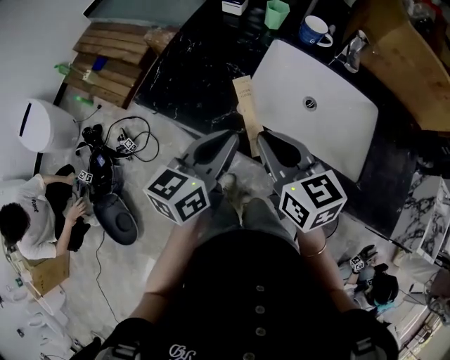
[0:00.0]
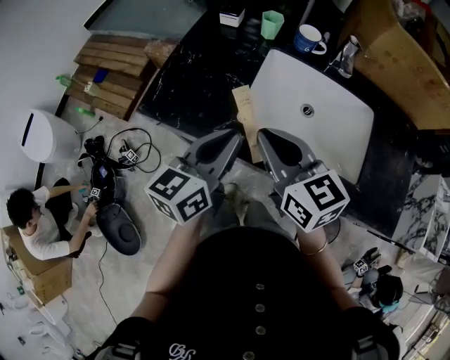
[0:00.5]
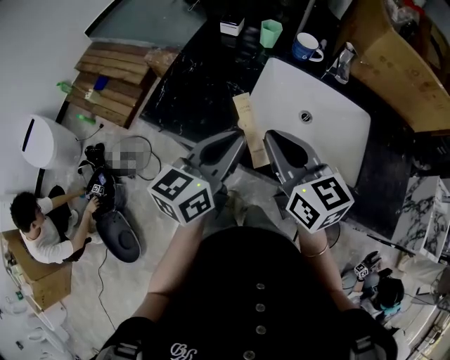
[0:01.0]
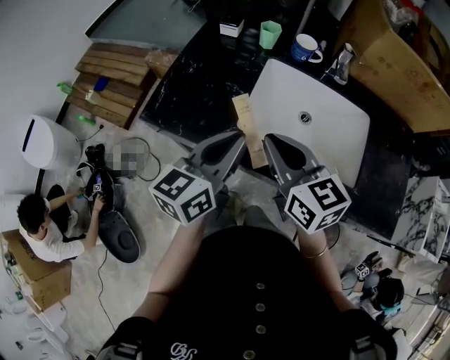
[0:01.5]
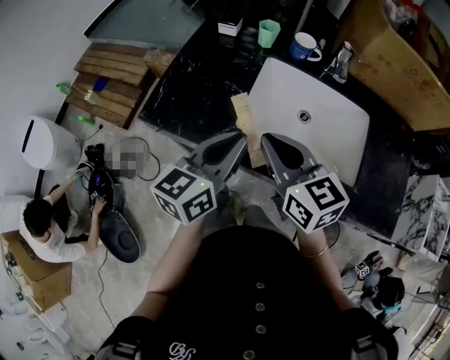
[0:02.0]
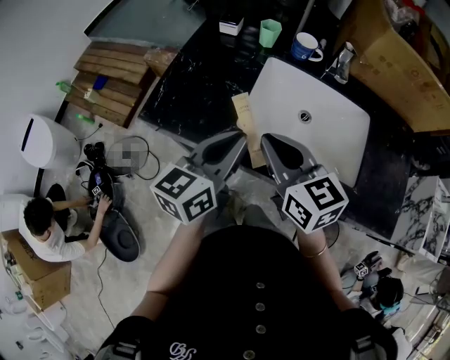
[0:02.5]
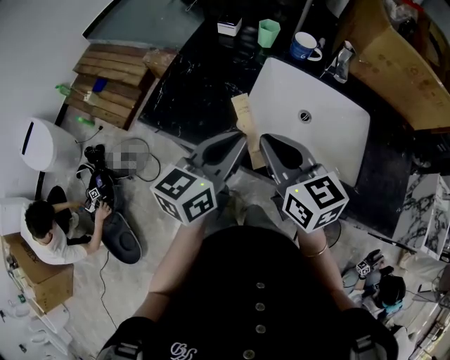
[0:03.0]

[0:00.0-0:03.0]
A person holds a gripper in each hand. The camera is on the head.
0:00.0 to 0:01.5: The grippers move only a little.
0:01.5 to 0:03.0: Neither gripper changes place.

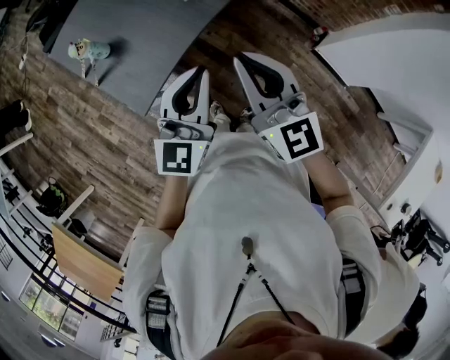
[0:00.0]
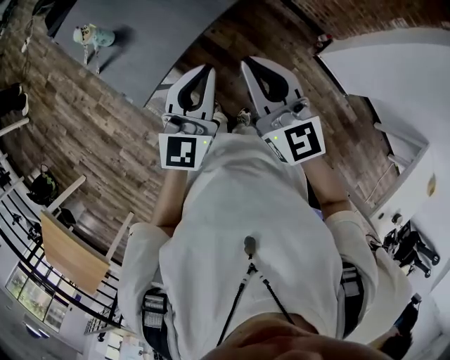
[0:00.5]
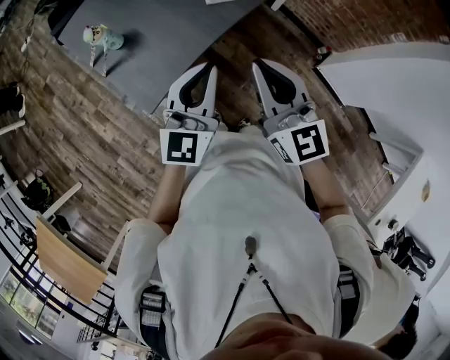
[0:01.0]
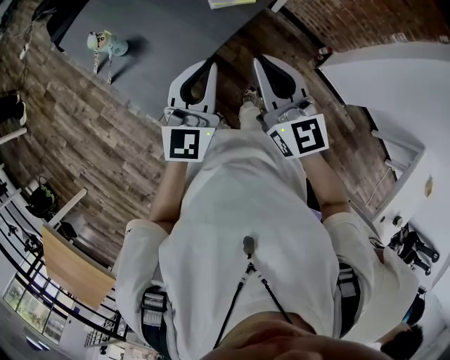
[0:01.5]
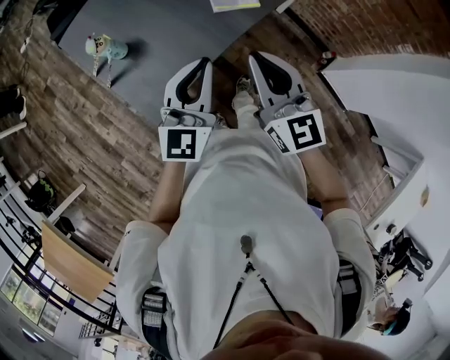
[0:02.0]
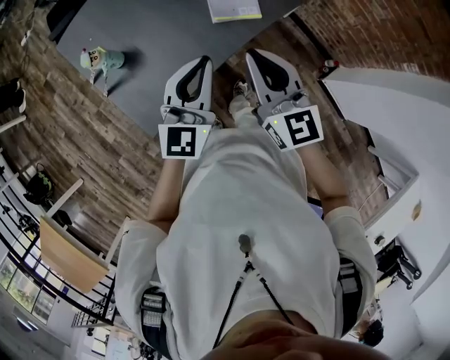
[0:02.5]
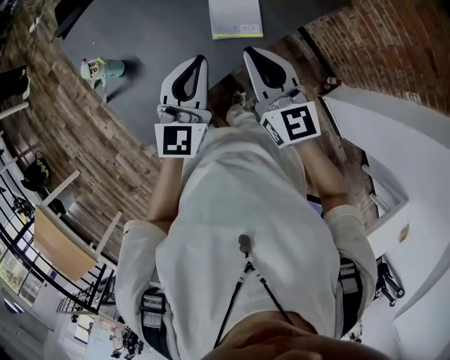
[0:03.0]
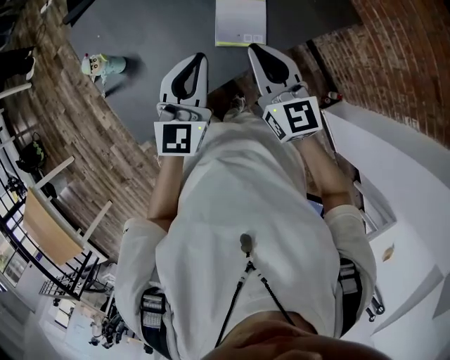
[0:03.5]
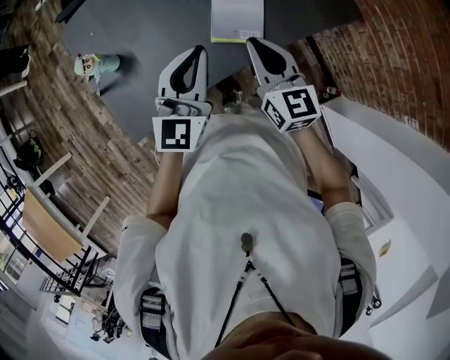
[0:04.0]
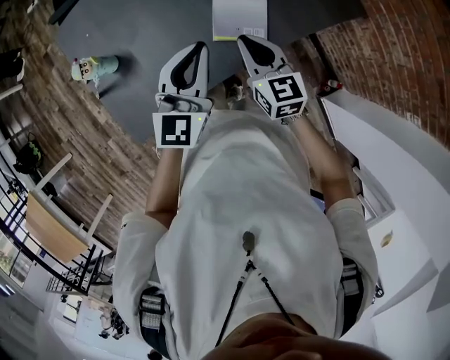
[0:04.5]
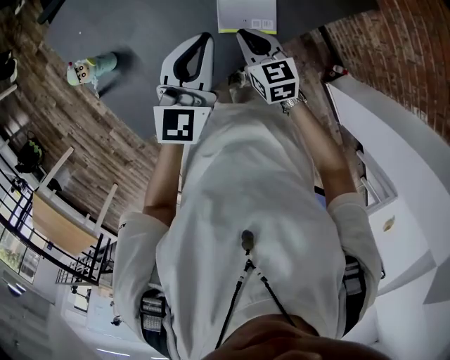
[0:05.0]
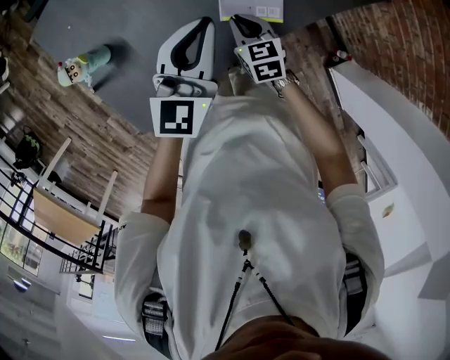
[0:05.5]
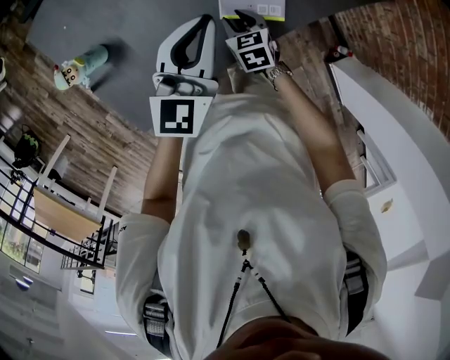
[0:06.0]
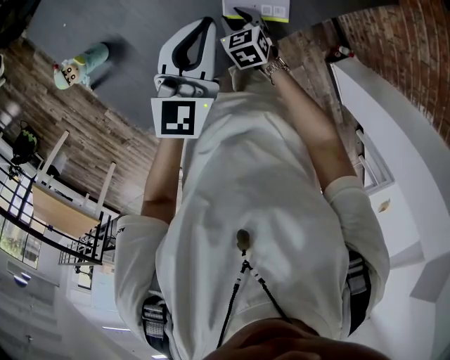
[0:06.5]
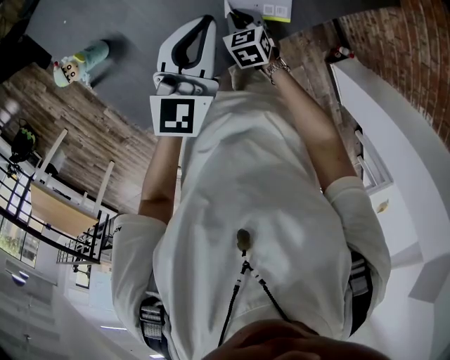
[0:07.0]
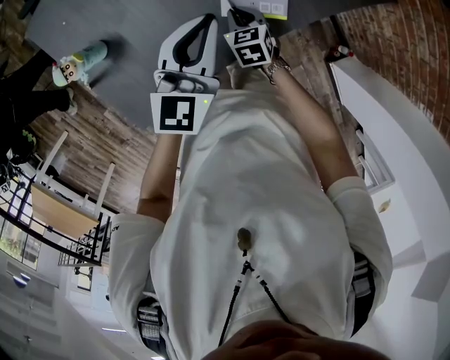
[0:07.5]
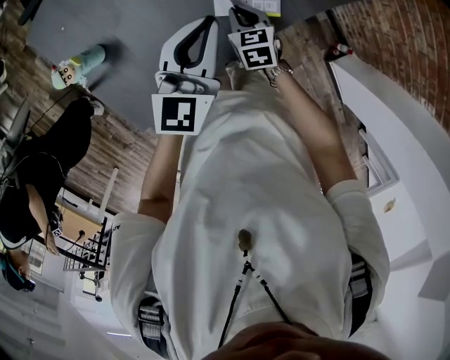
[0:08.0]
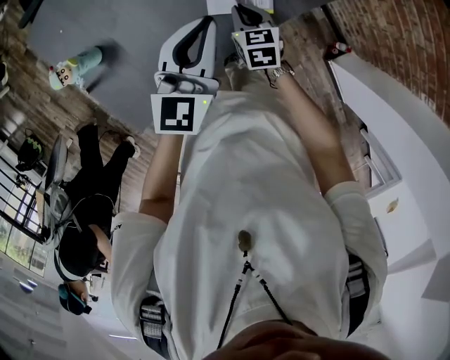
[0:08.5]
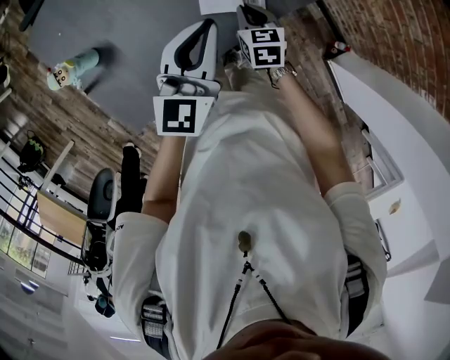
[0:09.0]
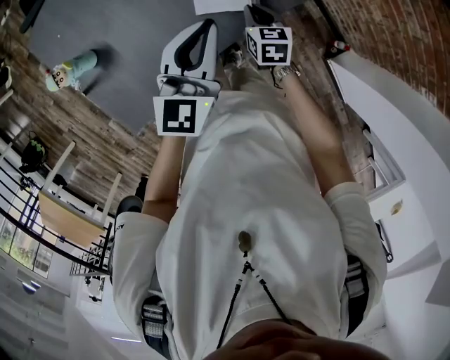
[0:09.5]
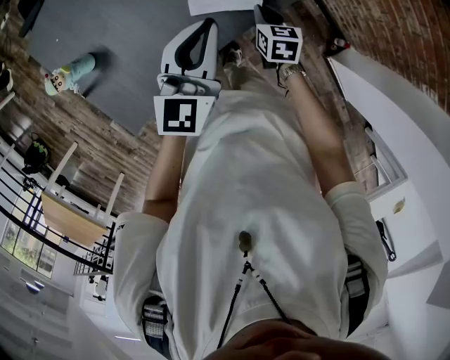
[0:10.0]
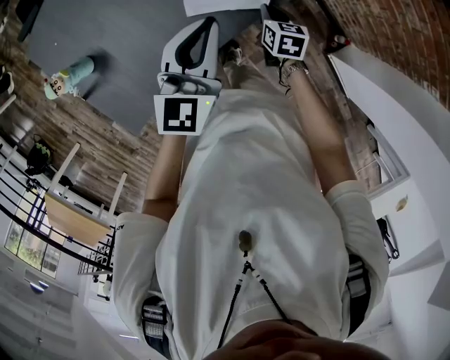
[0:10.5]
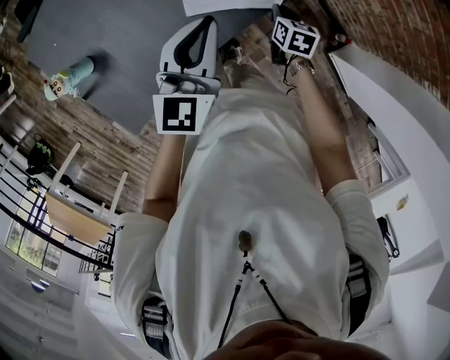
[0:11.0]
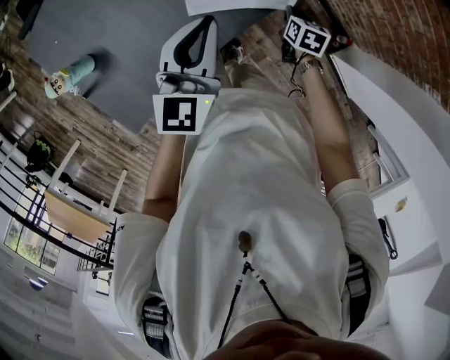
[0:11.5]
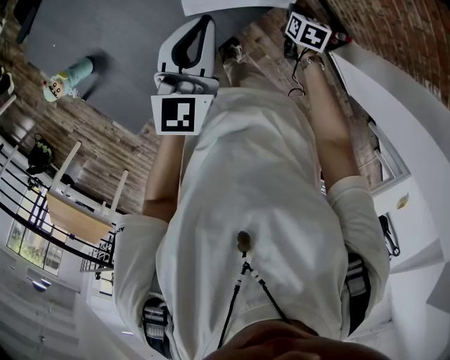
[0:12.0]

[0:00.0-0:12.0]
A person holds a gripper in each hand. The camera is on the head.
0:00.0 to 0:02.0: Both grippers move forward and to the left, approximately 15 cm.
0:02.0 to 0:04.0: The two grippers go about 30 cm forward and to the right.
0:04.0 to 0:06.0: The right gripper shifts some 30 cm downward, tips its fingers downward by some 40 degrees, and opens. The left gripper travels forward and downward by about 15 cm.
0:06.0 to 0:08.0: The right gripper closes.
0:08.0 to 0:10.0: The right gripper heads to the right, covering roughly 15 cm; the left gripper moves to the right, roughly 10 cm.
0:10.0 to 0:12.0: The right gripper is displaced to the right and downward by roughly 15 cm.

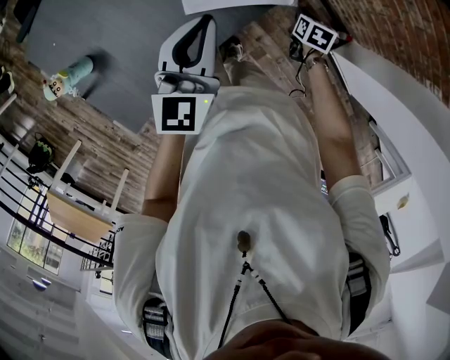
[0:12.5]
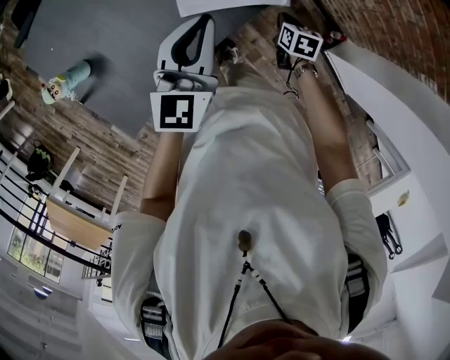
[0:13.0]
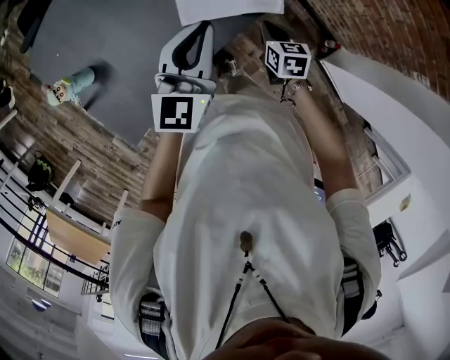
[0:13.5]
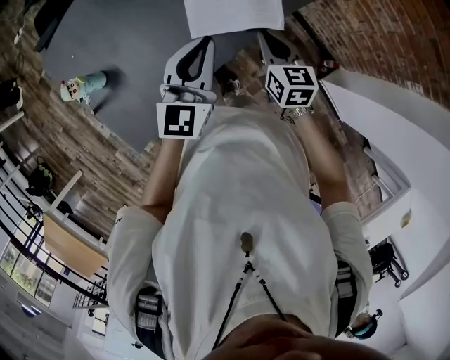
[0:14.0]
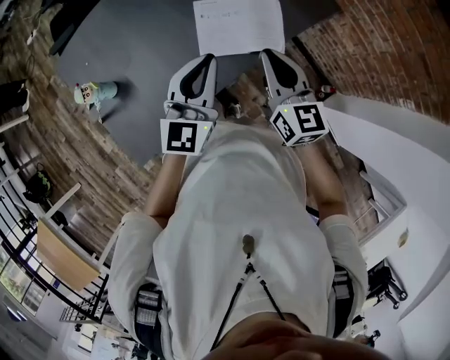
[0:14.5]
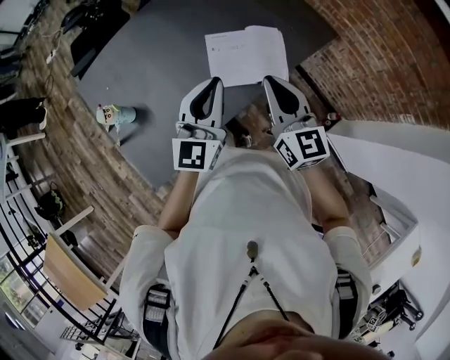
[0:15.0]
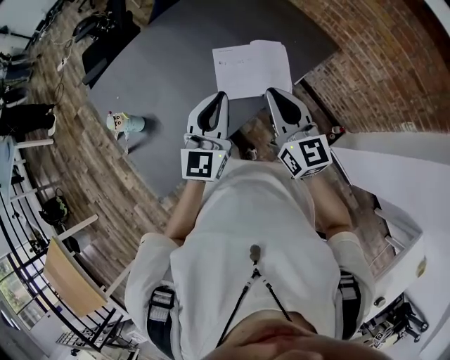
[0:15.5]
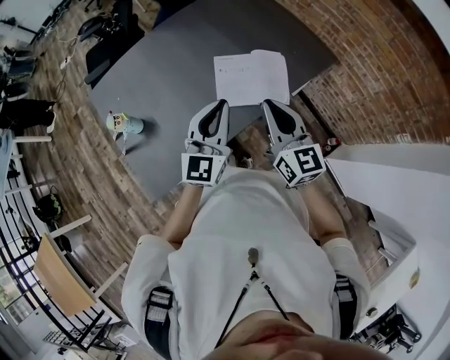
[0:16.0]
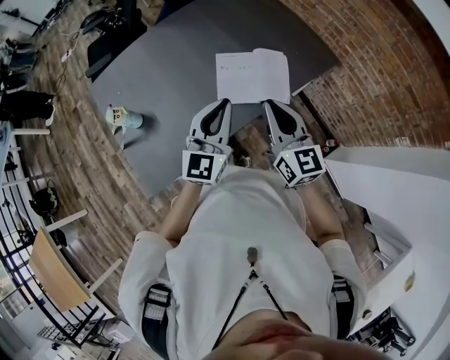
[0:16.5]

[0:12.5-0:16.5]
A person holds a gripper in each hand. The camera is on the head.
0:12.5 to 0:14.5: The left gripper travels upward and backward by roughly 15 cm; the right gripper moves upward and to the left, about 40 cm, and tilts its fingers approximately 50 degrees upward.
0:14.5 to 0:16.5: The right gripper goes approximately 10 cm upward and backward. The left gripper travels backward by about 5 cm.

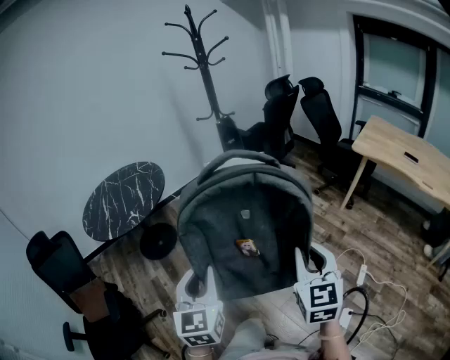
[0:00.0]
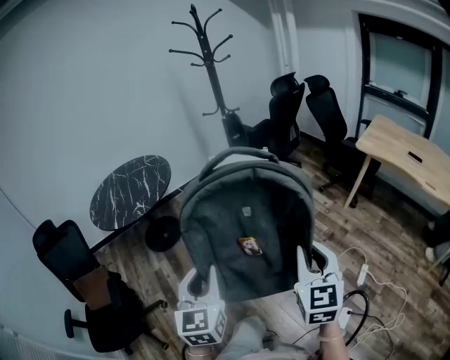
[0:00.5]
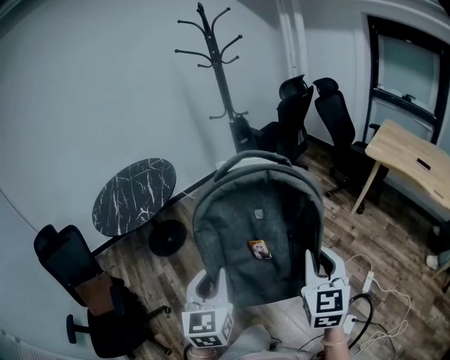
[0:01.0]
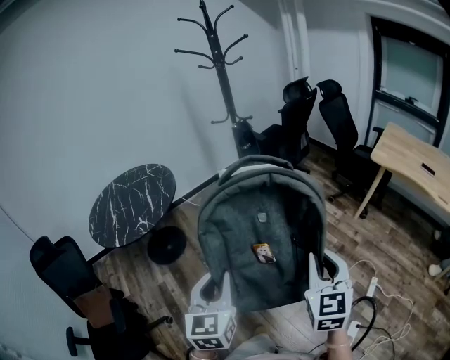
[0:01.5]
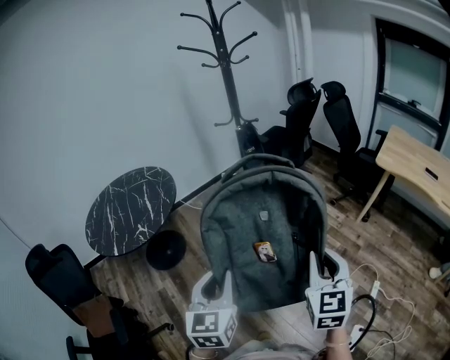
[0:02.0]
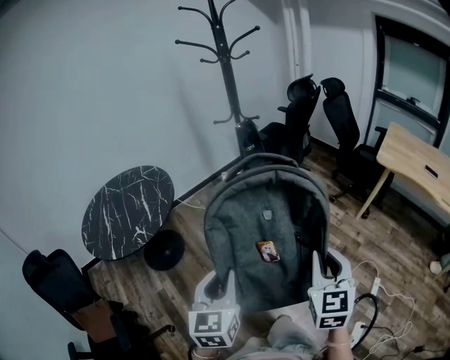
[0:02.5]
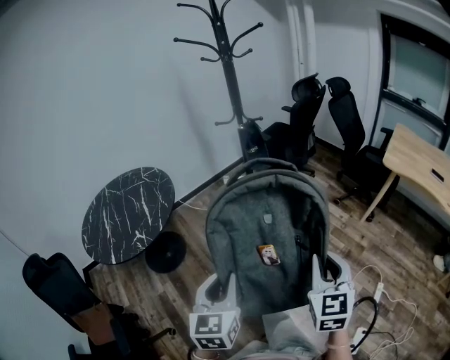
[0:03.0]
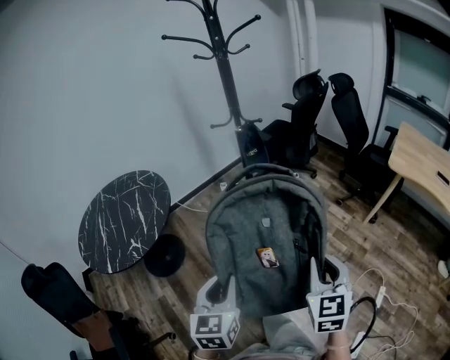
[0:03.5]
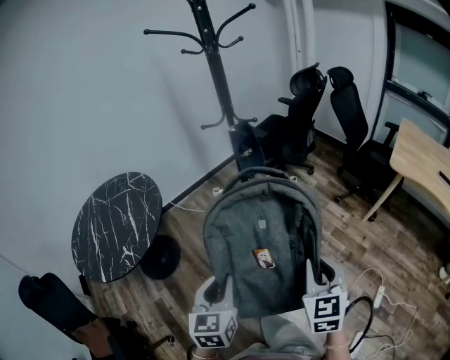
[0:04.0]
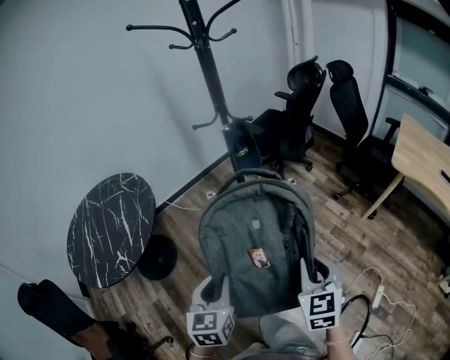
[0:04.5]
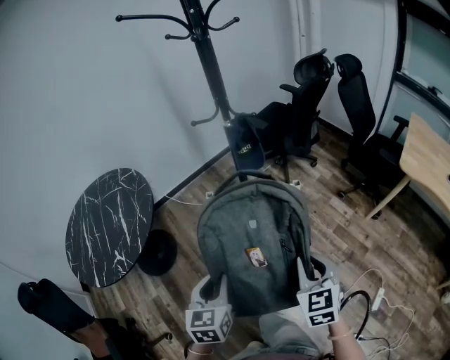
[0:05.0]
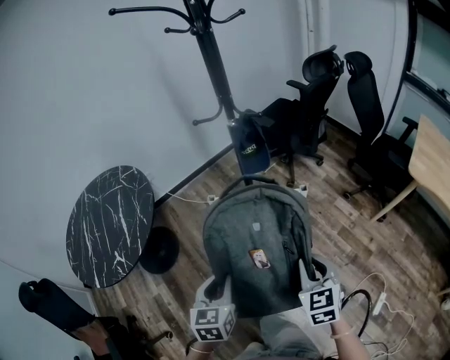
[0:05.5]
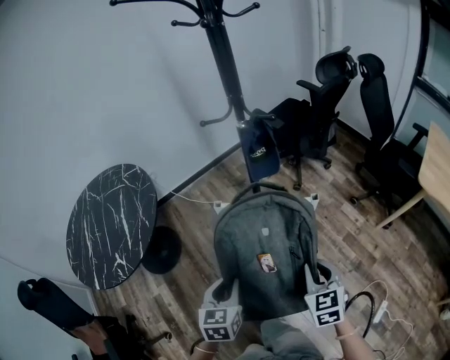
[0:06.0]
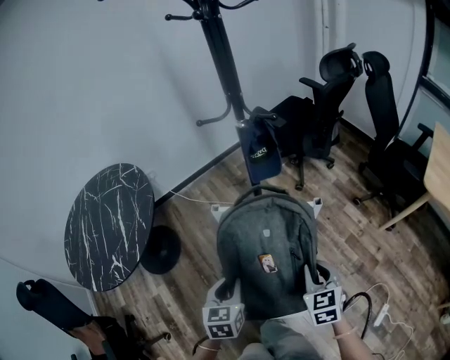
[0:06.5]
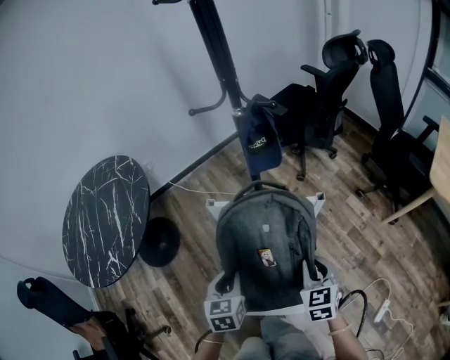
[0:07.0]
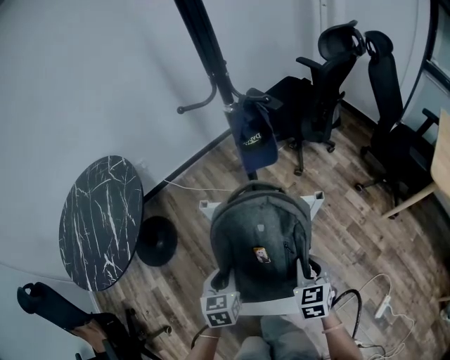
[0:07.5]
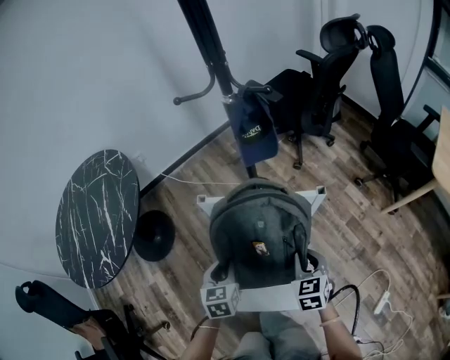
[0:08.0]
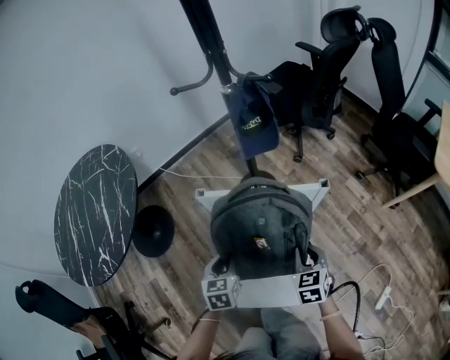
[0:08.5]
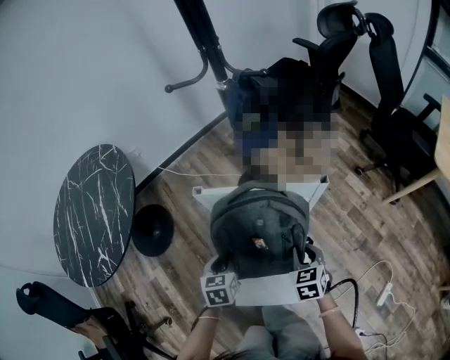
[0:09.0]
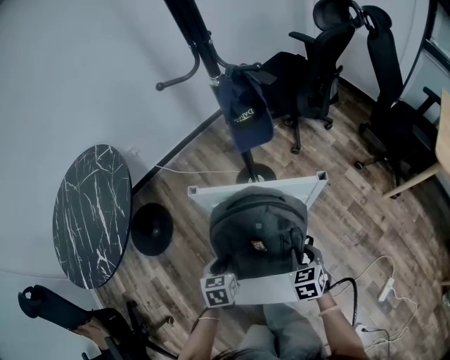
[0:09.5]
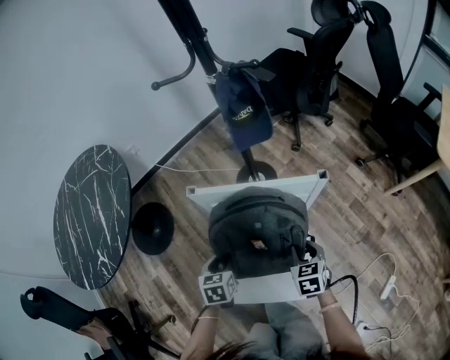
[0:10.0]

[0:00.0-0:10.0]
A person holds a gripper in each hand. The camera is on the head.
0:00.0 to 0:02.0: Both grippers travel together forward, approximately 15 cm.
0:02.0 to 0:04.0: The two grippers go about 20 cm forward.
0:04.0 to 0:06.0: The grippers both shift forward and downward by some 20 cm.
0:06.0 to 0:08.0: Both grippers move downward and forward, roughly 15 cm.
0:08.0 to 0:10.0: Both grippers move downward, roughly 10 cm.
